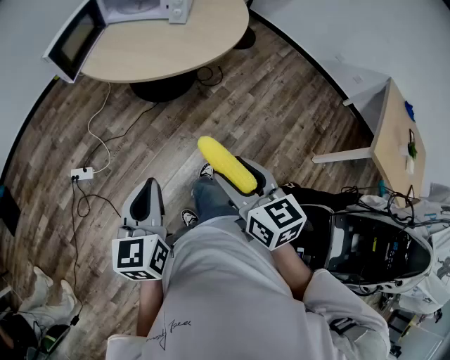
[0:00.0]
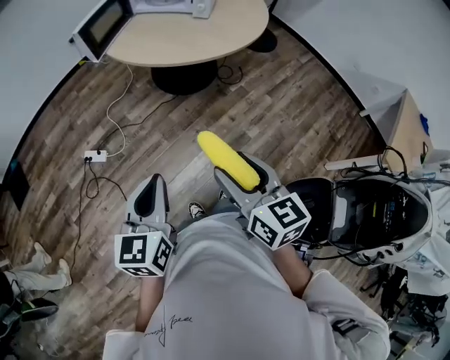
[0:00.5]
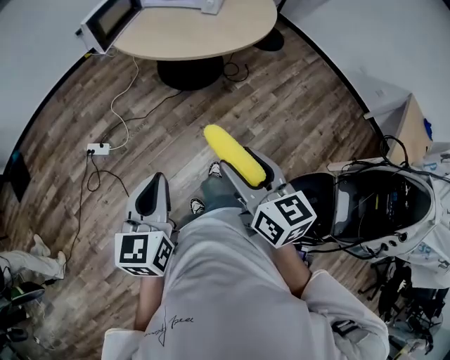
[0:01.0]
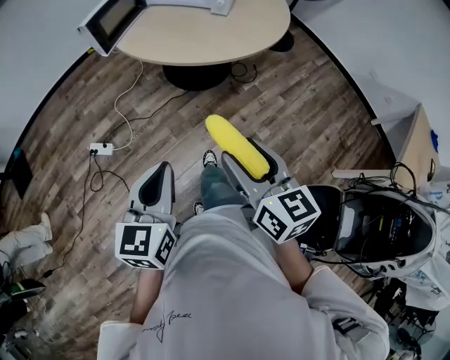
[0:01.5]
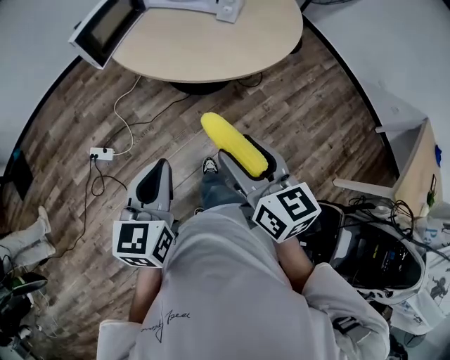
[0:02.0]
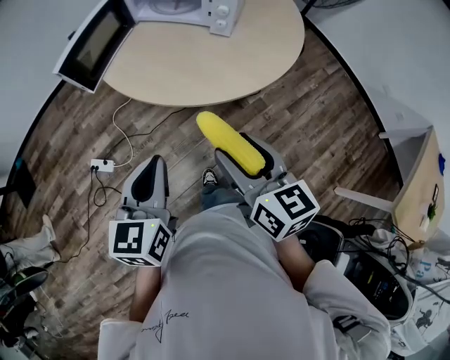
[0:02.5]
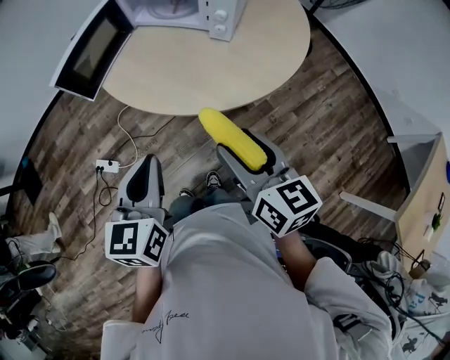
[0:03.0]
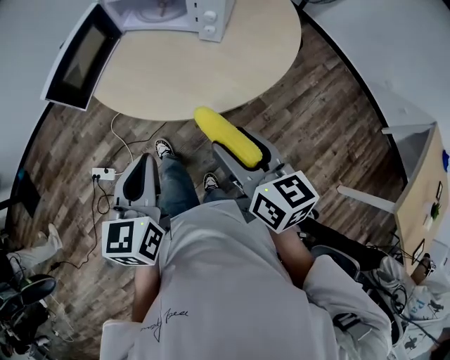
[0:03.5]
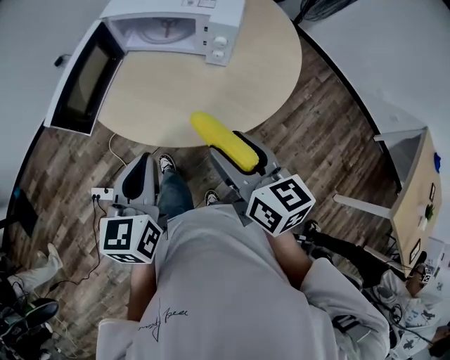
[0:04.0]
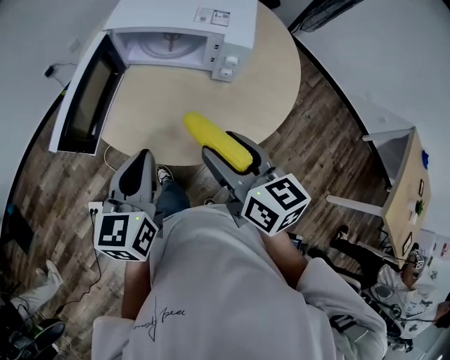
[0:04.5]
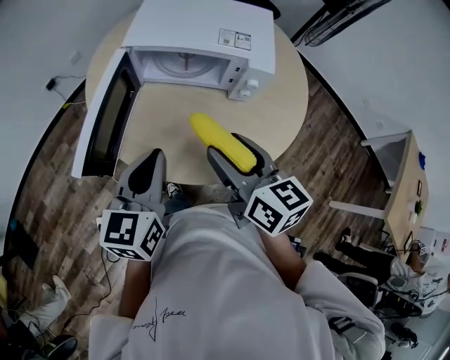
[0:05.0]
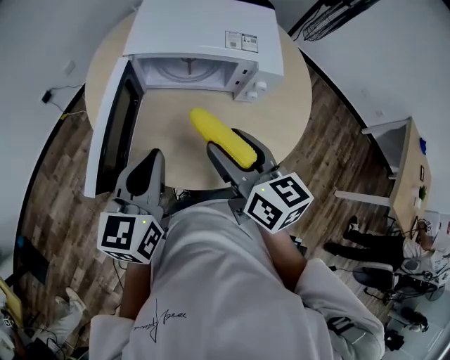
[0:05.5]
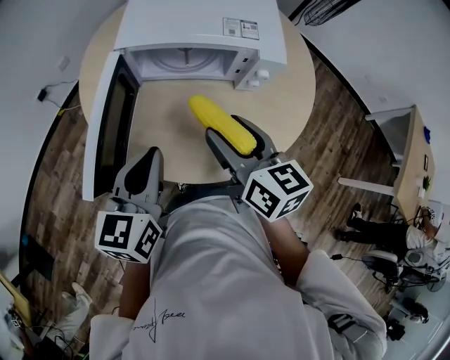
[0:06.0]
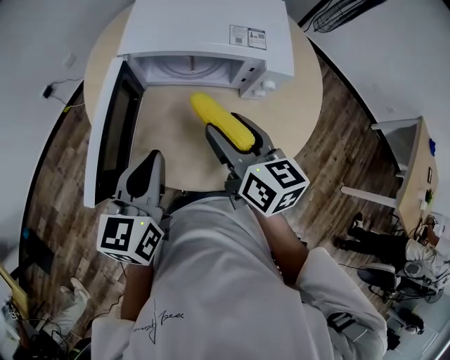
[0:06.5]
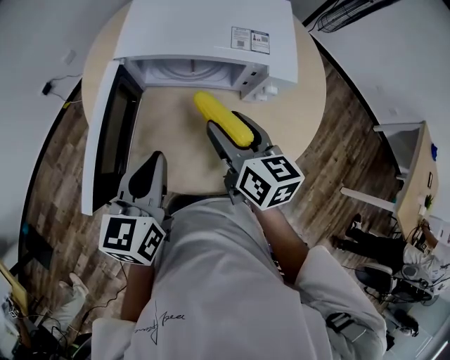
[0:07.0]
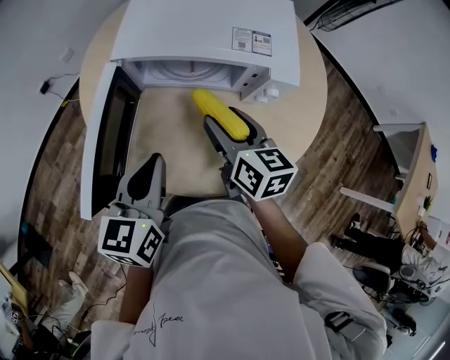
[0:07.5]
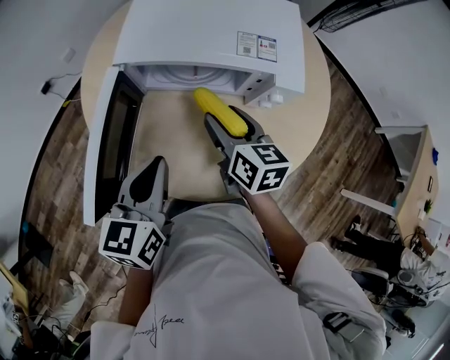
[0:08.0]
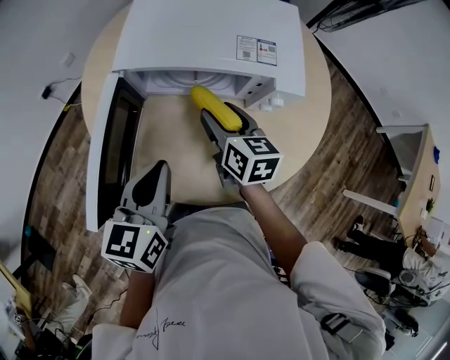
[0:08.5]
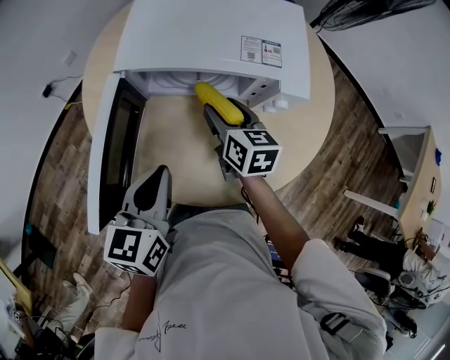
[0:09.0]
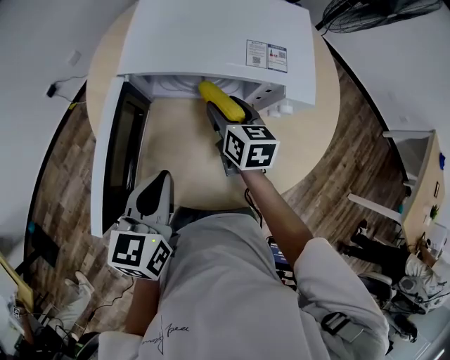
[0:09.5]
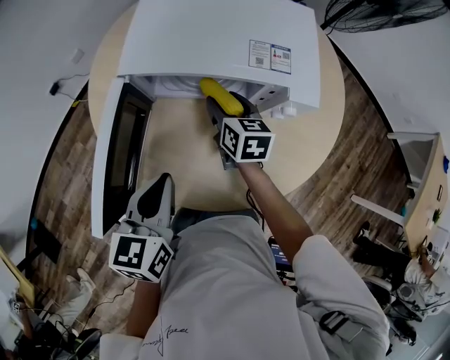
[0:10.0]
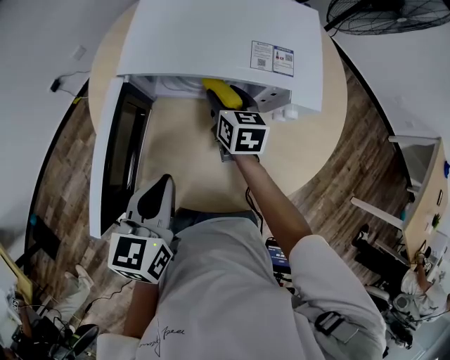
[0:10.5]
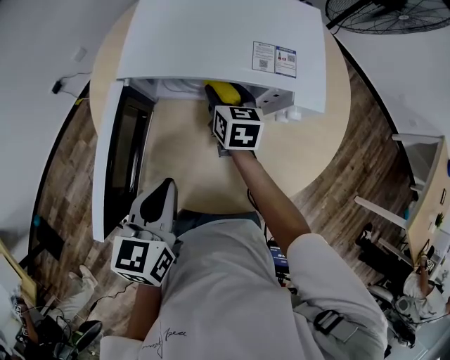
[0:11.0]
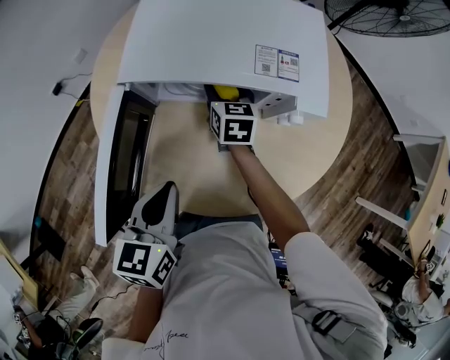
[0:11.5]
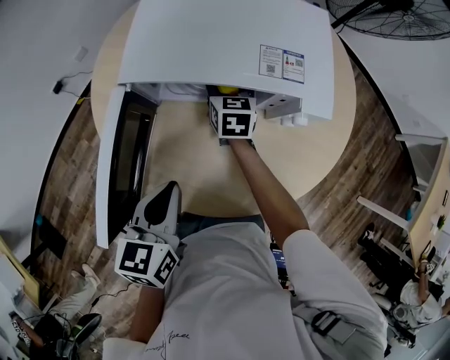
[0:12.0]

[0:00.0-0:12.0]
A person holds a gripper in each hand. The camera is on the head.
0:00.0 to 0:02.0: Both grippers move forward, approximately 15 cm.
0:02.0 to 0:04.0: The grippers both shift forward by approximately 25 cm.
0:04.0 to 0:06.0: Both grippers travel together forward and to the left, roughly 25 cm.
0:06.0 to 0:08.0: The left gripper moves forward, about 5 cm; the right gripper travels forward and downward by approximately 15 cm.
0:08.0 to 0:10.0: The right gripper goes about 10 cm forward and downward.
0:10.0 to 0:12.0: The right gripper travels forward by about 10 cm.

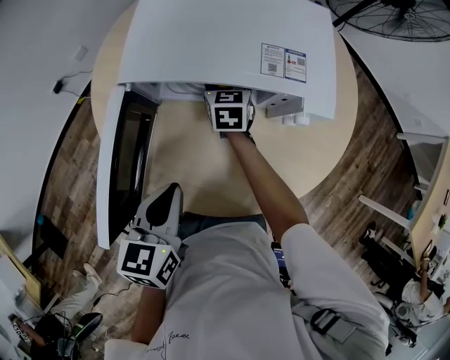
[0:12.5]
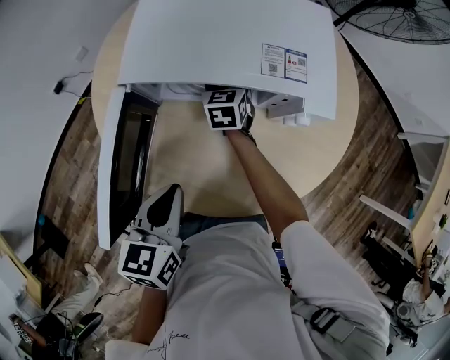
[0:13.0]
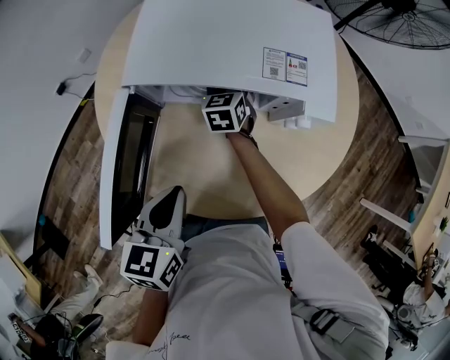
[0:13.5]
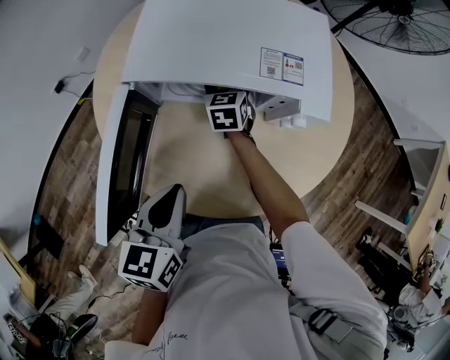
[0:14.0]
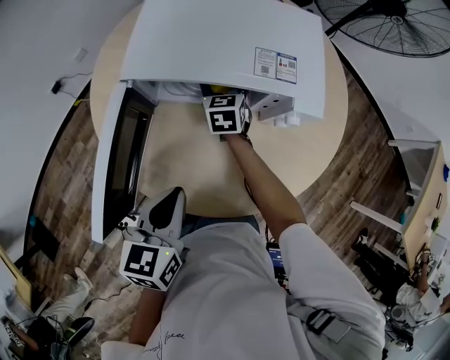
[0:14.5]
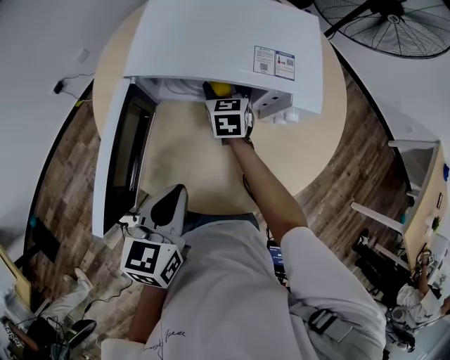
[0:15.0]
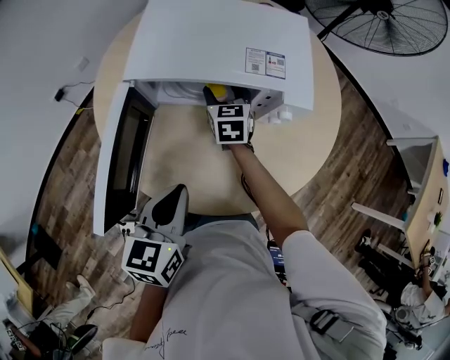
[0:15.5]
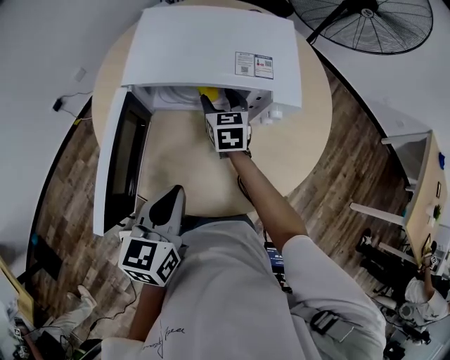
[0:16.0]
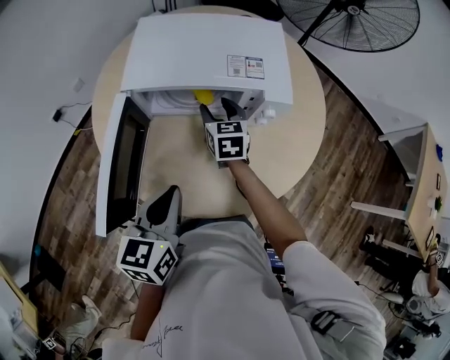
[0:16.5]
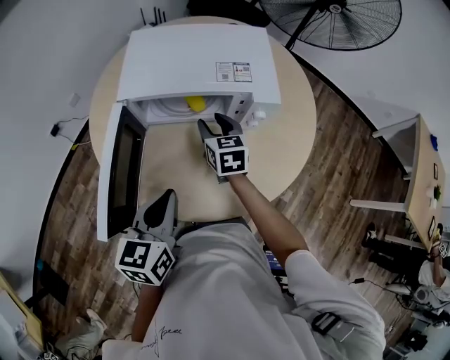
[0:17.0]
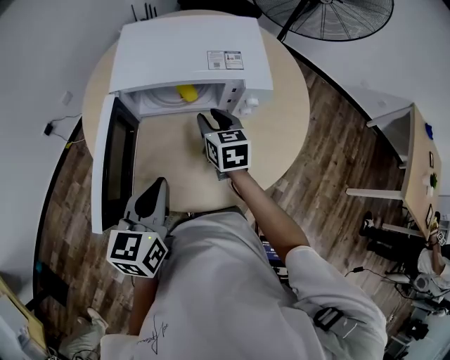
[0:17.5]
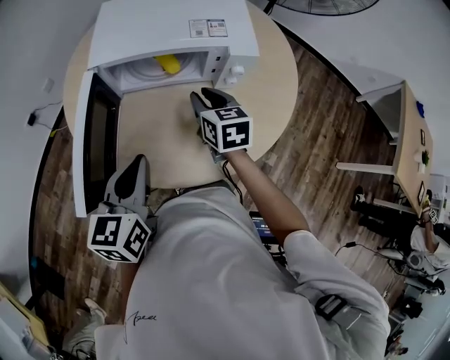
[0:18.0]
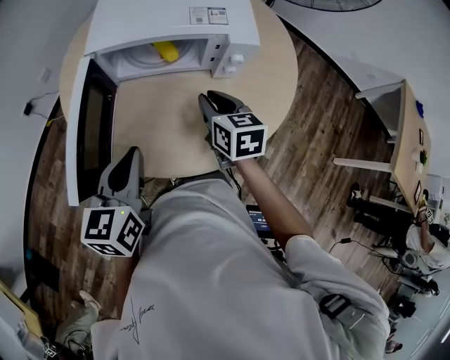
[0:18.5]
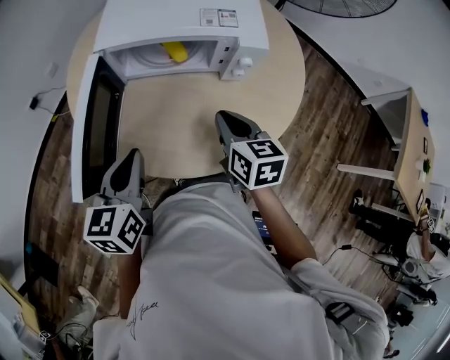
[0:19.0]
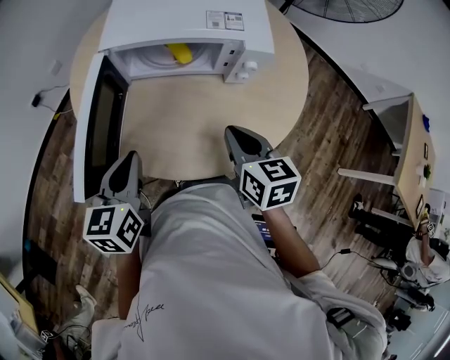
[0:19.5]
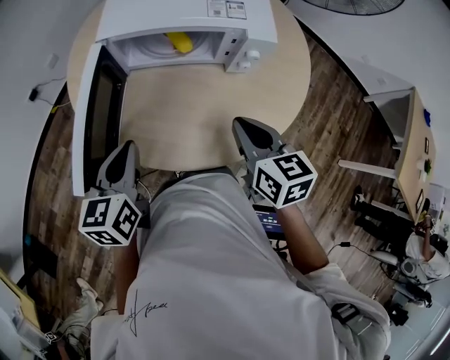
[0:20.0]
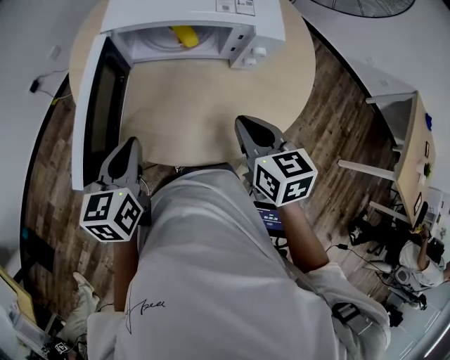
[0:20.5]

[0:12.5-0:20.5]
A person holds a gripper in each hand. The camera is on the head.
0:12.5 to 0:14.5: There are only small adjustments of the grippers.
0:14.5 to 0:16.5: The right gripper shifts approximately 10 cm backward and upward.
0:16.5 to 0:18.5: The right gripper shifts some 15 cm backward and to the right, and closes up.
0:18.5 to 0:20.5: The right gripper travels backward by some 10 cm. The left gripper changes place by approximately 5 cm.

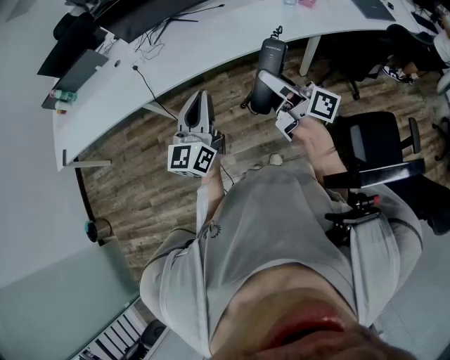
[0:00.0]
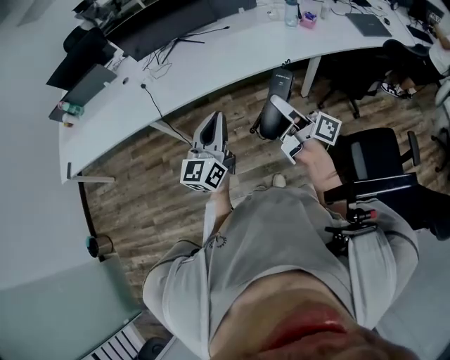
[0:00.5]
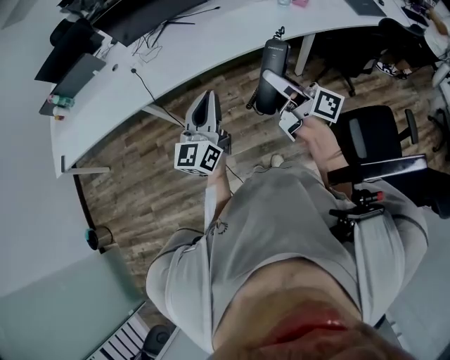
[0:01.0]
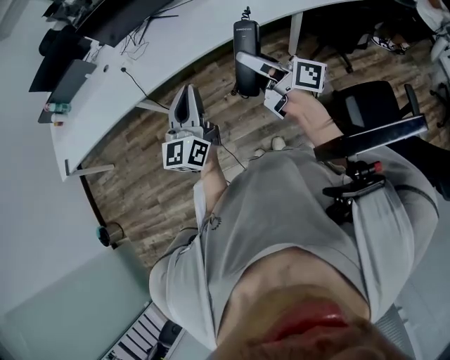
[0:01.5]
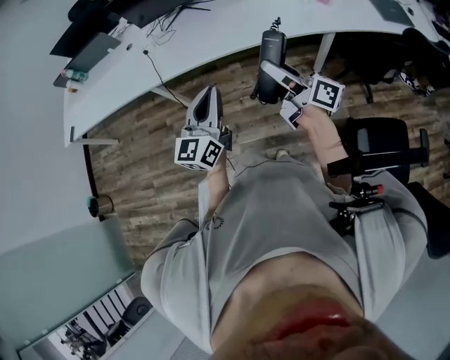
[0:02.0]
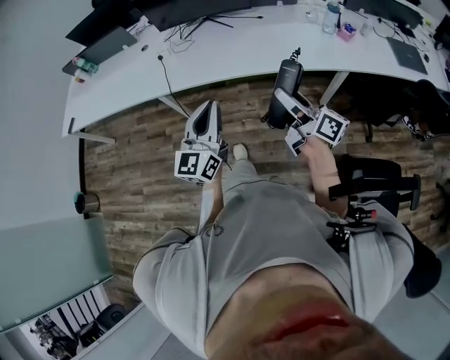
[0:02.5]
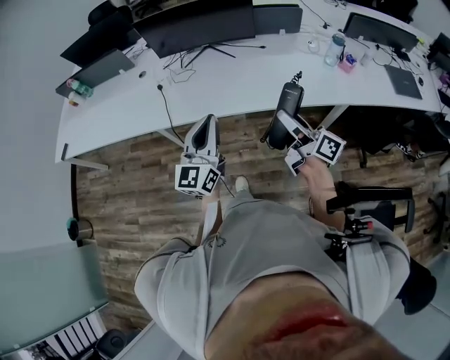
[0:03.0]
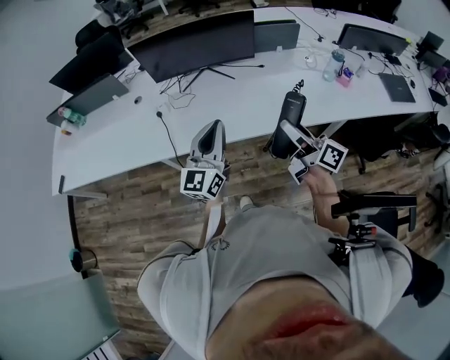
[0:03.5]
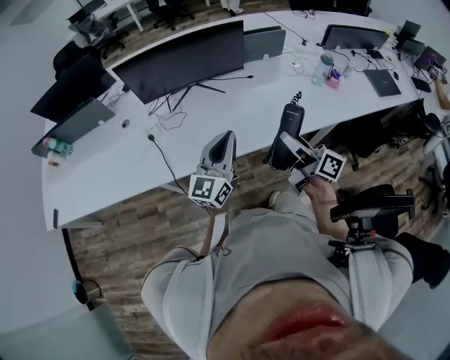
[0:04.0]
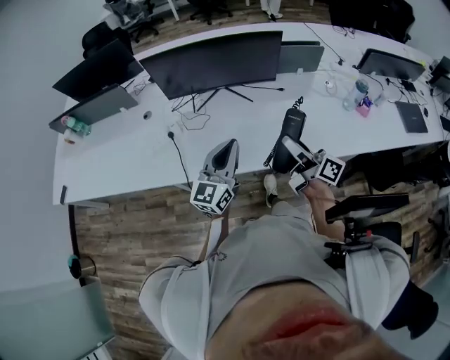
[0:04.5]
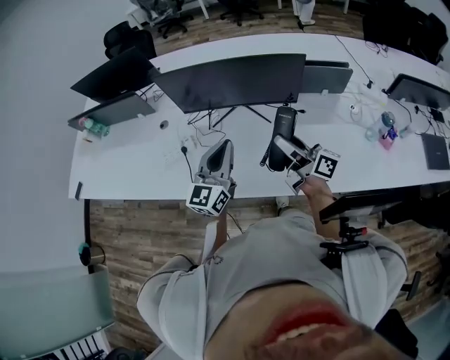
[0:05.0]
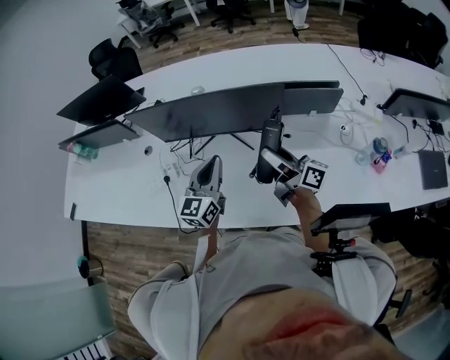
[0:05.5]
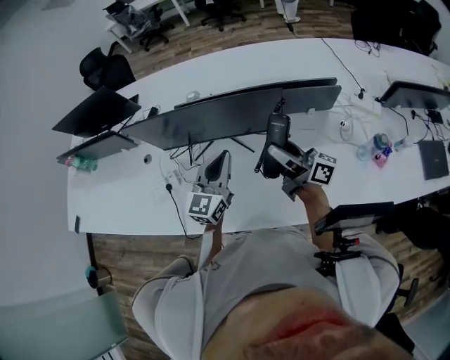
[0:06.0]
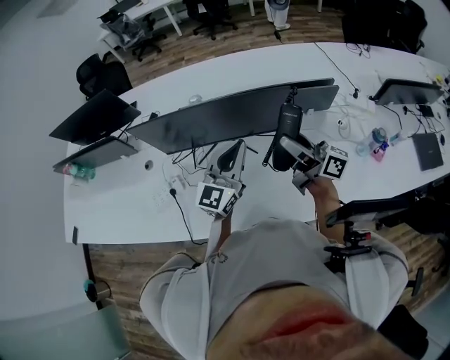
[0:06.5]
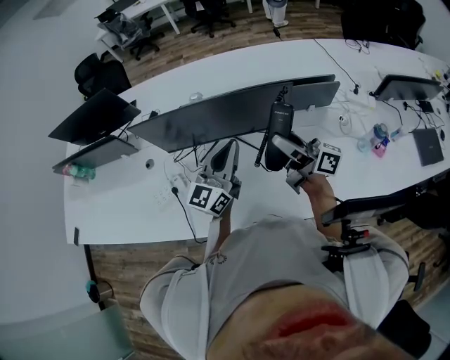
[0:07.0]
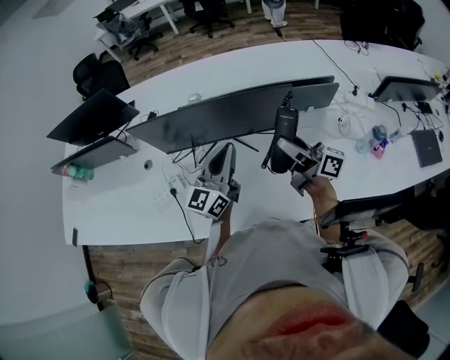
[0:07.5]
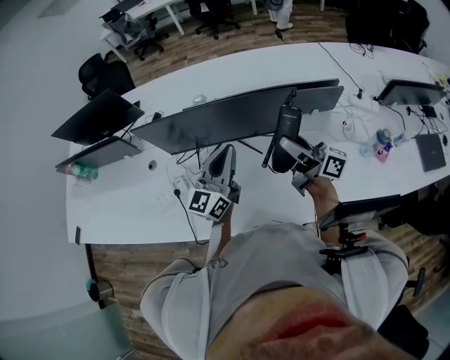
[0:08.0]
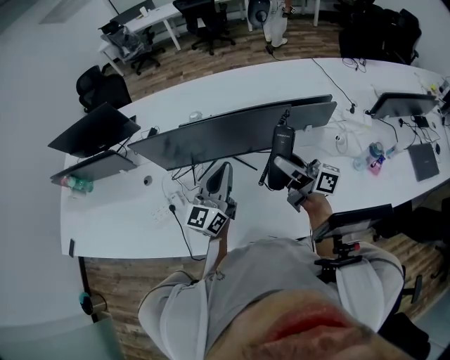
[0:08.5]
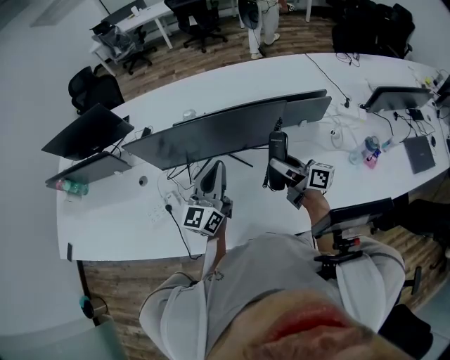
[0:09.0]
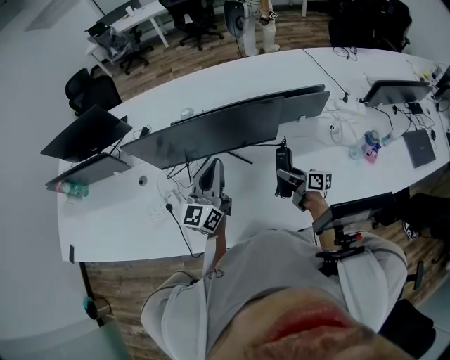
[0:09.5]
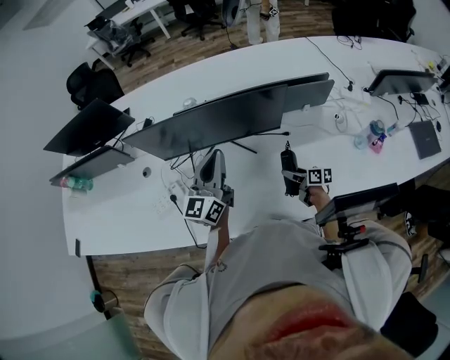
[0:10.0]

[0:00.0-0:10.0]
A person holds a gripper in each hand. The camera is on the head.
0:00.0 to 0:02.0: The left gripper moves approximately 5 cm.
0:02.0 to 0:04.0: Both grippers travel together forward, approximately 30 cm.
0:04.0 to 0:06.0: The two grippers go some 35 cm forward. The right gripper turns by approximately 20 degrees. The left gripper swivels some 20 degrees.
0:06.0 to 0:08.0: The left gripper changes place by about 5 cm.
0:08.0 to 0:10.0: The right gripper heads downward, covering roughly 35 cm, and angles its fingers downward, by about 40 degrees.
